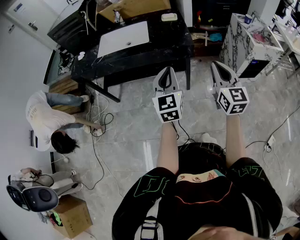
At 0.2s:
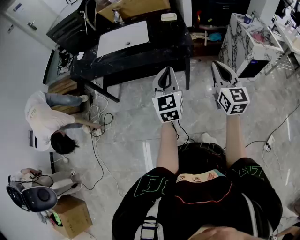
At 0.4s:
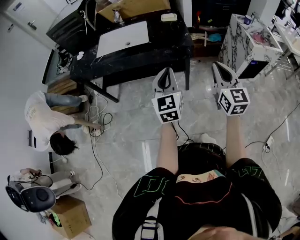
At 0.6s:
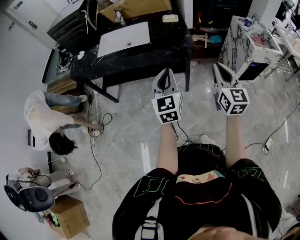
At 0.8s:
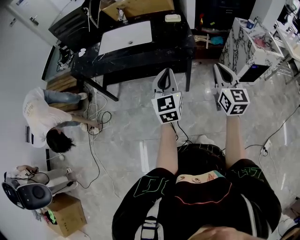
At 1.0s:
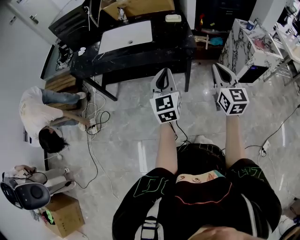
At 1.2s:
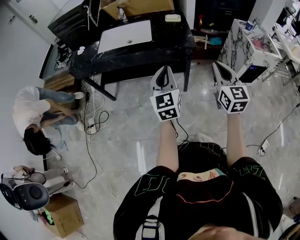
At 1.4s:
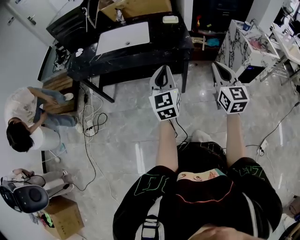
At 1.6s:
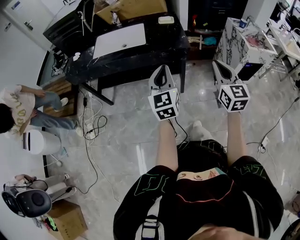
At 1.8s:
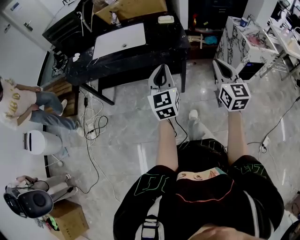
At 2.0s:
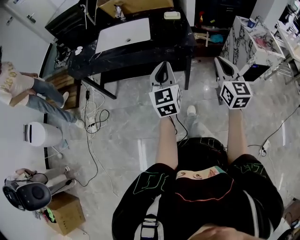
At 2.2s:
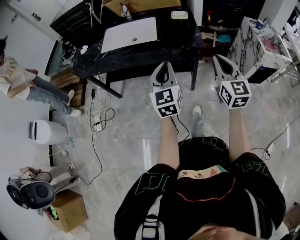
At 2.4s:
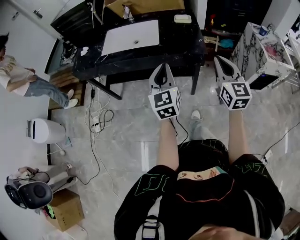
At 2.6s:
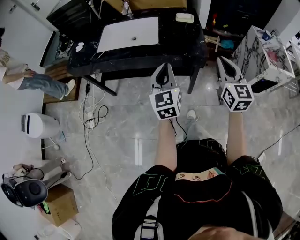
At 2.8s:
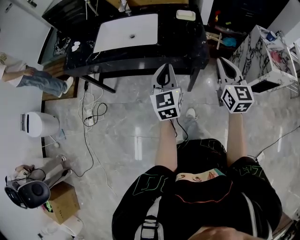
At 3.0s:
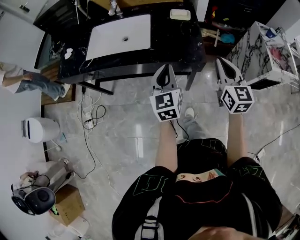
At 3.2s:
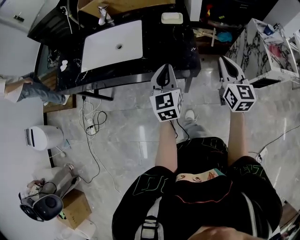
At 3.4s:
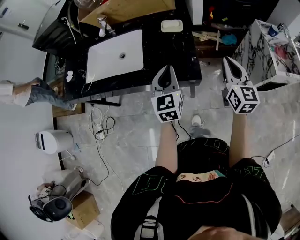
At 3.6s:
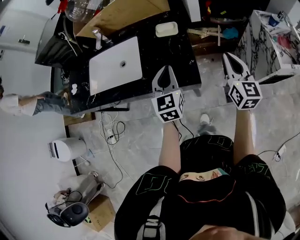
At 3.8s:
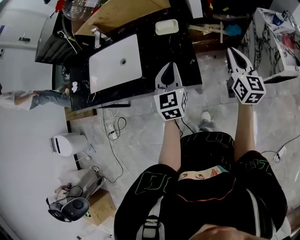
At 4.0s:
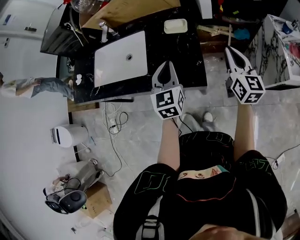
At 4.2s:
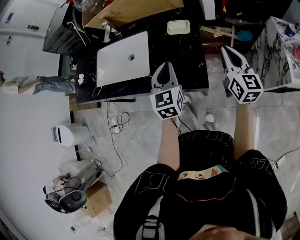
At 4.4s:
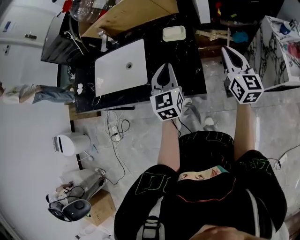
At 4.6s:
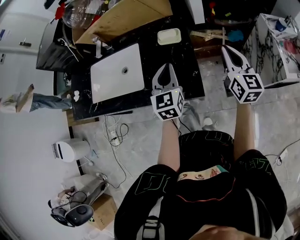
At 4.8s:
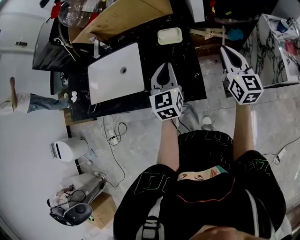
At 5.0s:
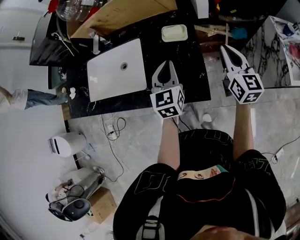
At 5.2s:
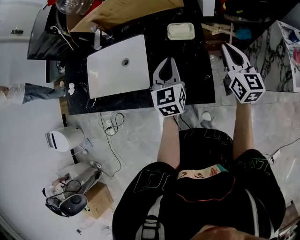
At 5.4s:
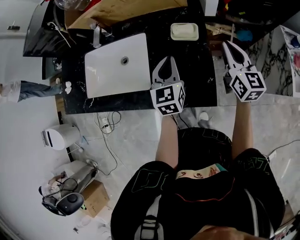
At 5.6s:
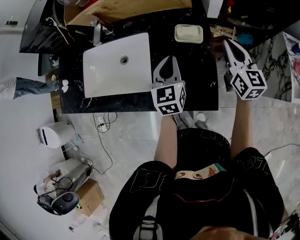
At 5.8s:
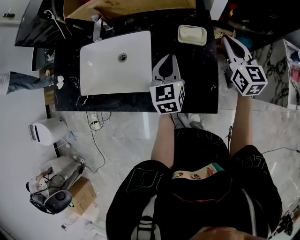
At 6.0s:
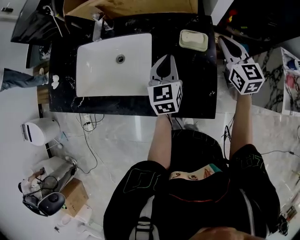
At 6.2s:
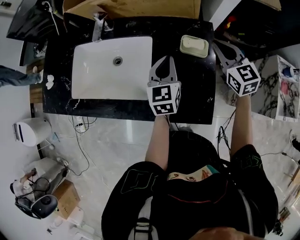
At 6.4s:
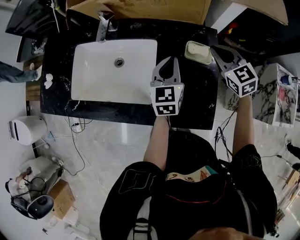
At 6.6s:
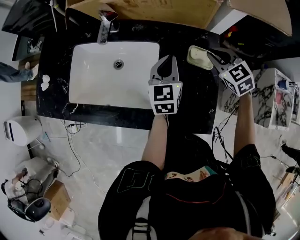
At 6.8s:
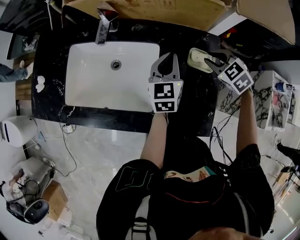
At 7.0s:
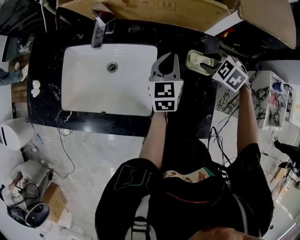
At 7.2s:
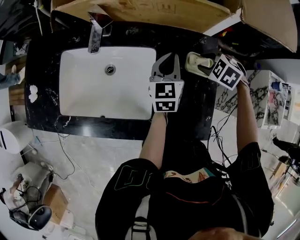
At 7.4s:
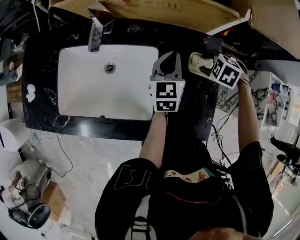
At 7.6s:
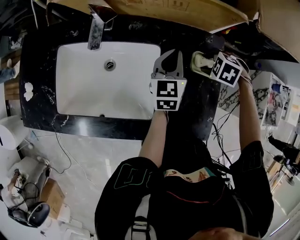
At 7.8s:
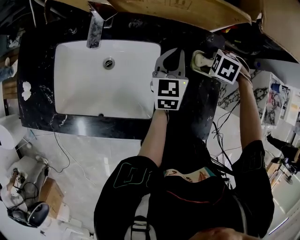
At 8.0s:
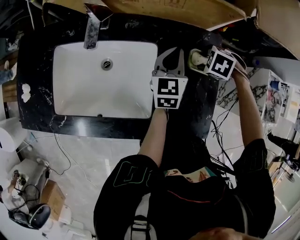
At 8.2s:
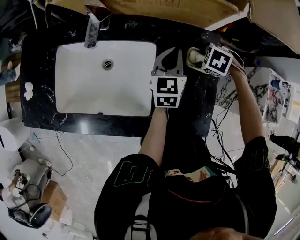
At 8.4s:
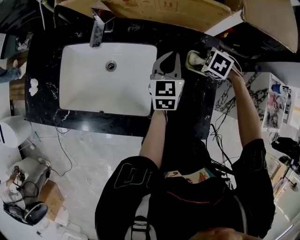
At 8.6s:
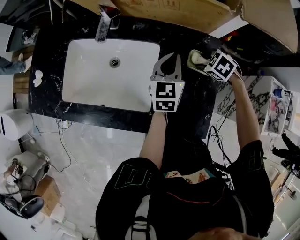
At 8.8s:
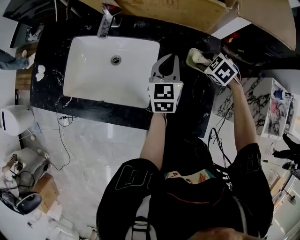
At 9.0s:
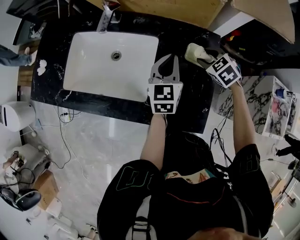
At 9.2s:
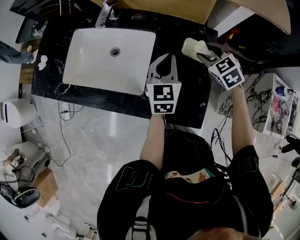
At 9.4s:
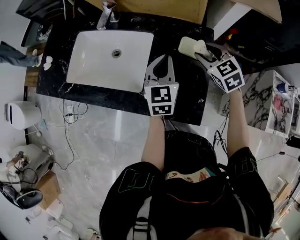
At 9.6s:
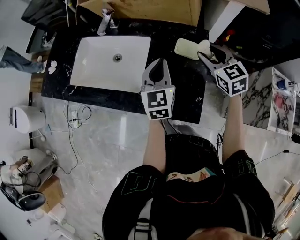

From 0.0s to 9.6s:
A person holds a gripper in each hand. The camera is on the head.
From 0.0s to 1.6s: The grippers make only small movements.
From 1.6s to 3.2s: Both grippers travel together forward, roughly 25 cm.
From 3.2s to 4.8s: Both grippers move forward, about 20 cm.
From 4.8s to 6.4s: The left gripper moves forward and to the left, some 15 cm, while the right gripper is displaced forward and to the left by roughly 25 cm, and rotates about 50 degrees.
From 6.4s to 8.0s: The left gripper moves approximately 10 cm; the right gripper travels downward by roughly 15 cm, angles its fingers downward, by about 60 degrees, and opens up.
From 8.0s to 9.6s: The right gripper shifts approximately 15 cm upward, and tips its fingers upward by roughly 60 degrees. The left gripper moves roughly 20 cm, and turns by roughly 20 degrees.

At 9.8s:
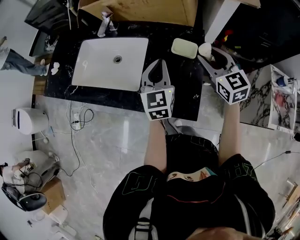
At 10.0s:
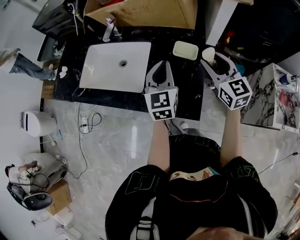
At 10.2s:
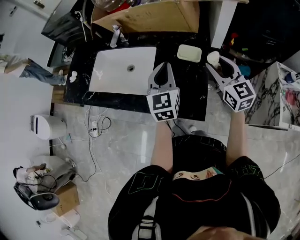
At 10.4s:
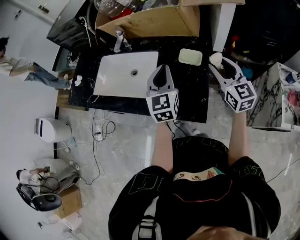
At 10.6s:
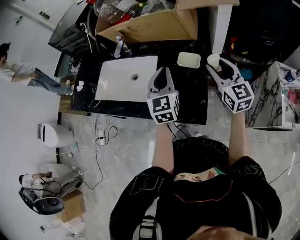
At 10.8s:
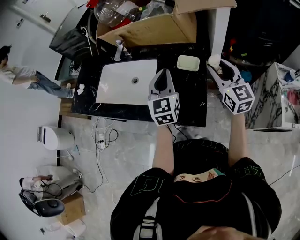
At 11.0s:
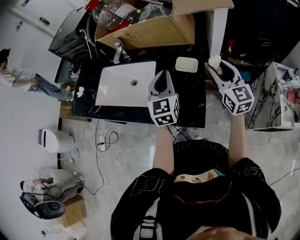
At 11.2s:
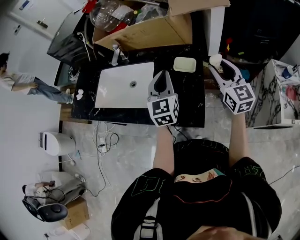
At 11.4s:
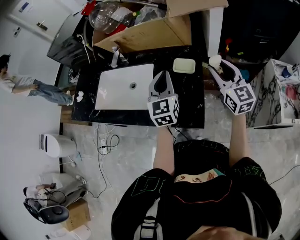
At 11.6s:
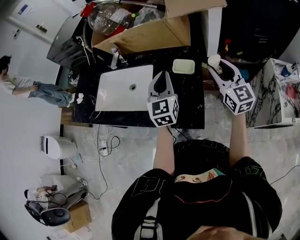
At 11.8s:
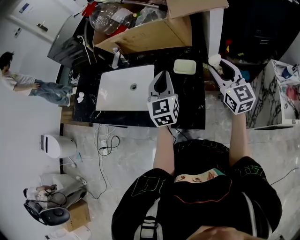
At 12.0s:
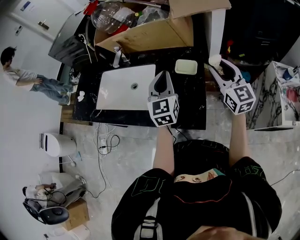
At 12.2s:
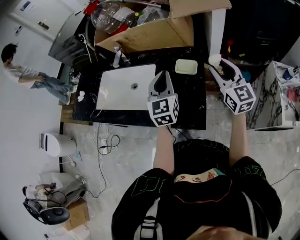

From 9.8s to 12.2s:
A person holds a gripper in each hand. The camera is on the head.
From 9.8s to 11.0s: The left gripper goes roughly 5 cm upward. The right gripper goes some 10 cm to the right and backward.
From 11.0s to 12.2s: The grippers move only a little.

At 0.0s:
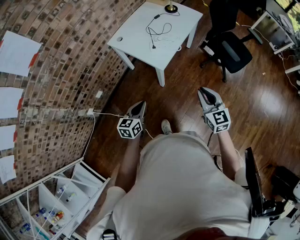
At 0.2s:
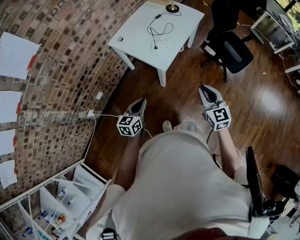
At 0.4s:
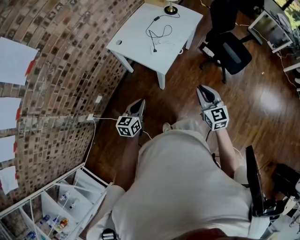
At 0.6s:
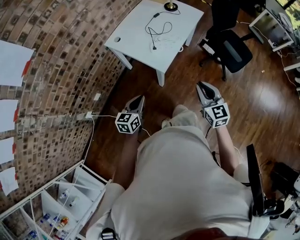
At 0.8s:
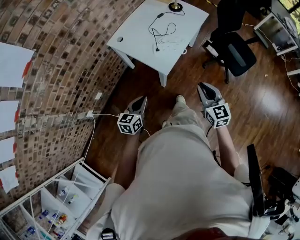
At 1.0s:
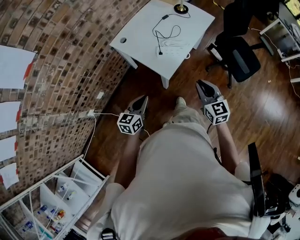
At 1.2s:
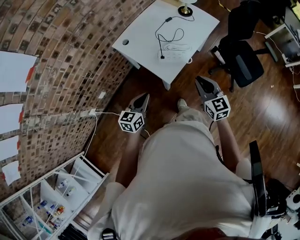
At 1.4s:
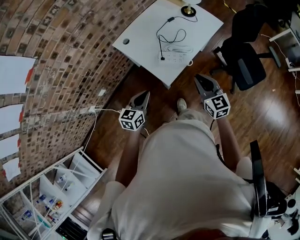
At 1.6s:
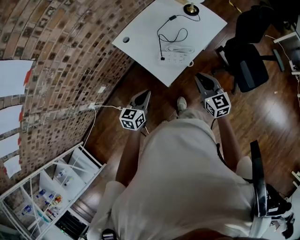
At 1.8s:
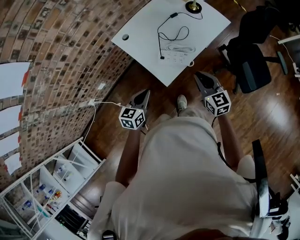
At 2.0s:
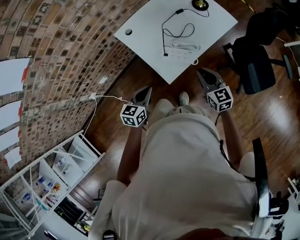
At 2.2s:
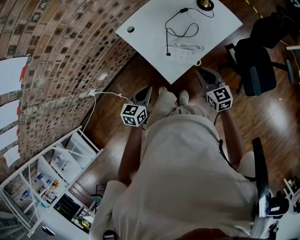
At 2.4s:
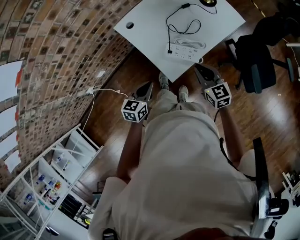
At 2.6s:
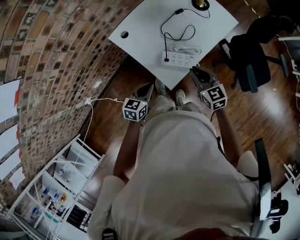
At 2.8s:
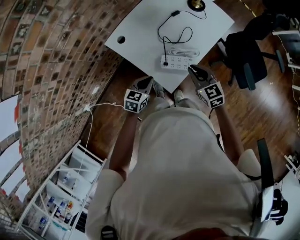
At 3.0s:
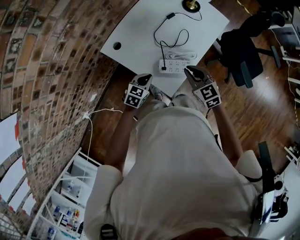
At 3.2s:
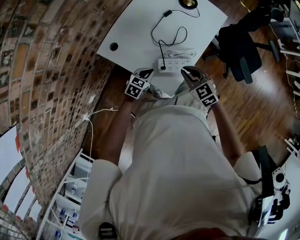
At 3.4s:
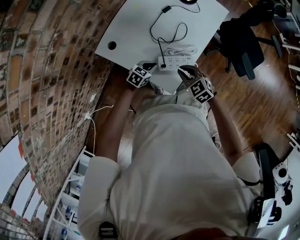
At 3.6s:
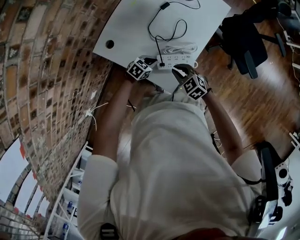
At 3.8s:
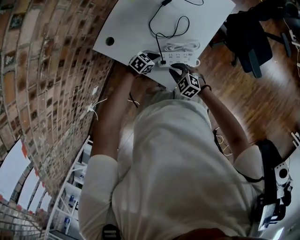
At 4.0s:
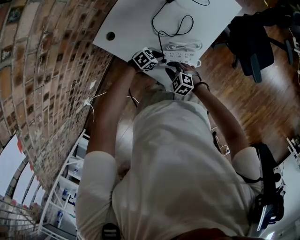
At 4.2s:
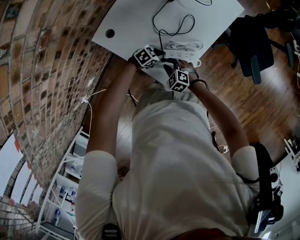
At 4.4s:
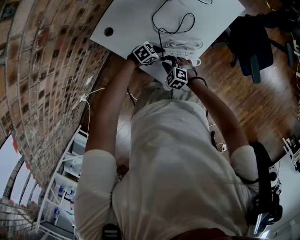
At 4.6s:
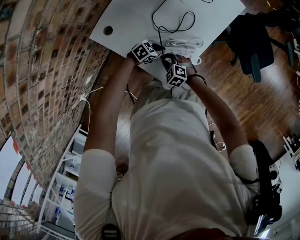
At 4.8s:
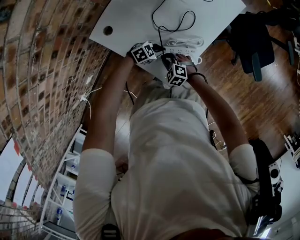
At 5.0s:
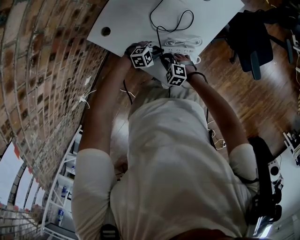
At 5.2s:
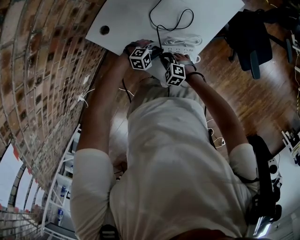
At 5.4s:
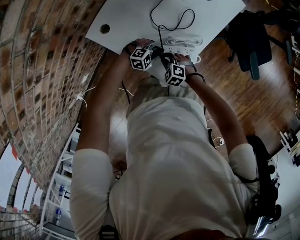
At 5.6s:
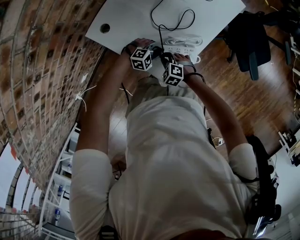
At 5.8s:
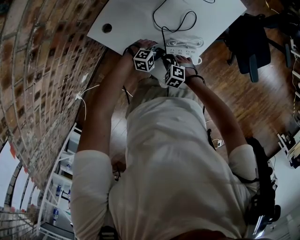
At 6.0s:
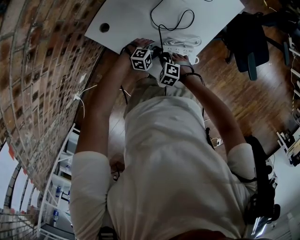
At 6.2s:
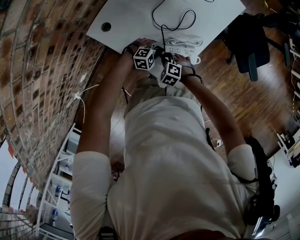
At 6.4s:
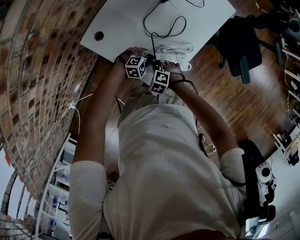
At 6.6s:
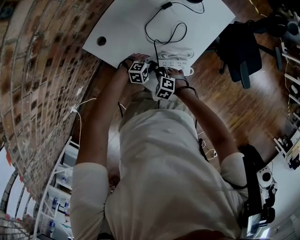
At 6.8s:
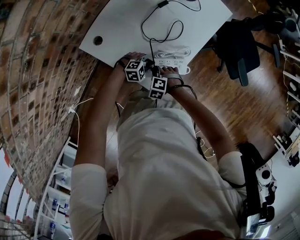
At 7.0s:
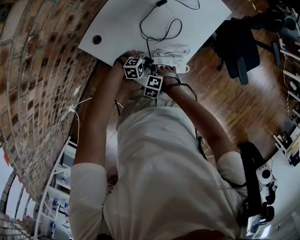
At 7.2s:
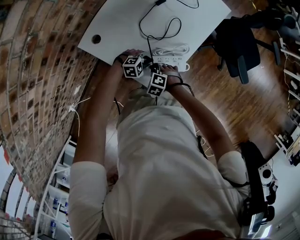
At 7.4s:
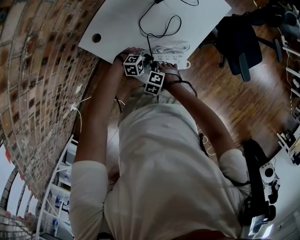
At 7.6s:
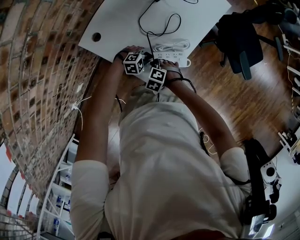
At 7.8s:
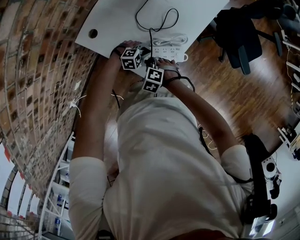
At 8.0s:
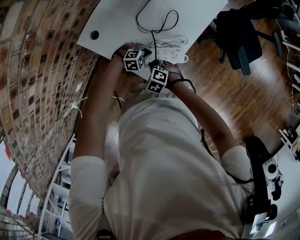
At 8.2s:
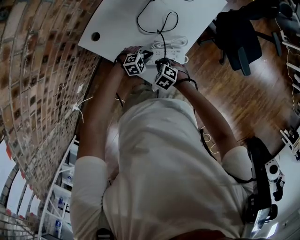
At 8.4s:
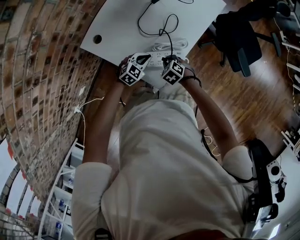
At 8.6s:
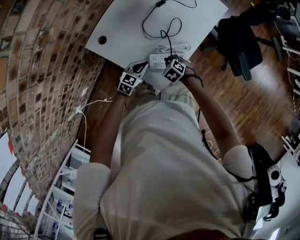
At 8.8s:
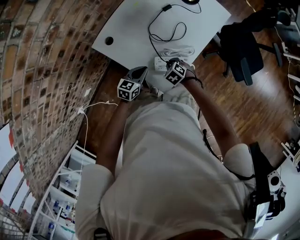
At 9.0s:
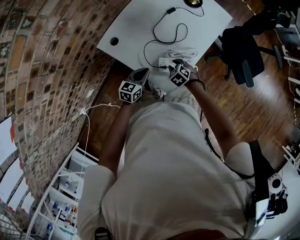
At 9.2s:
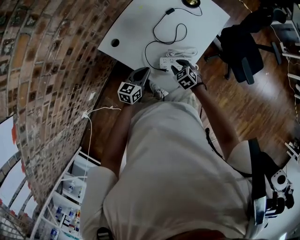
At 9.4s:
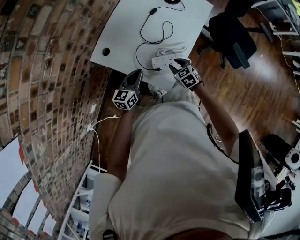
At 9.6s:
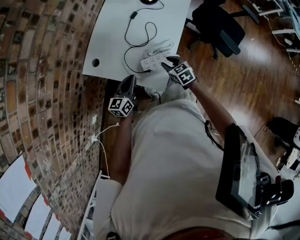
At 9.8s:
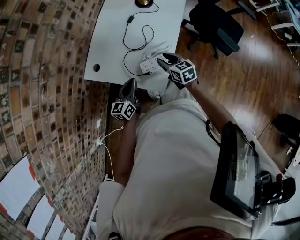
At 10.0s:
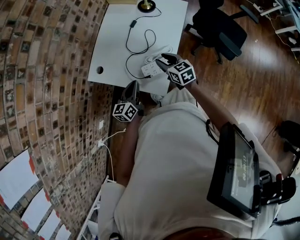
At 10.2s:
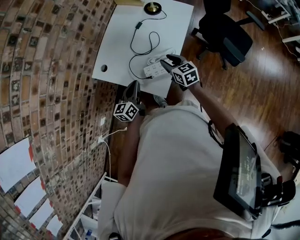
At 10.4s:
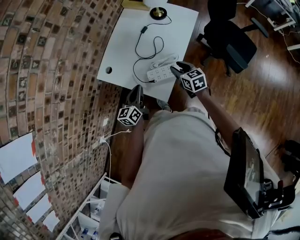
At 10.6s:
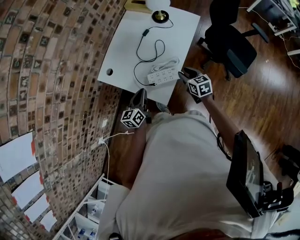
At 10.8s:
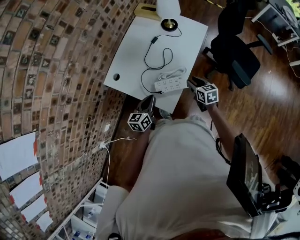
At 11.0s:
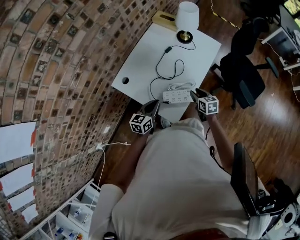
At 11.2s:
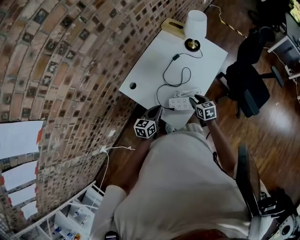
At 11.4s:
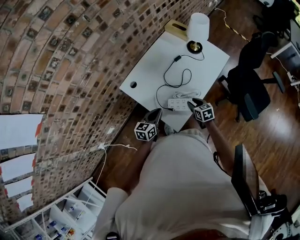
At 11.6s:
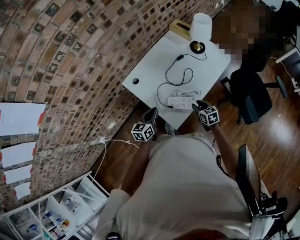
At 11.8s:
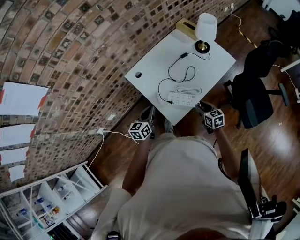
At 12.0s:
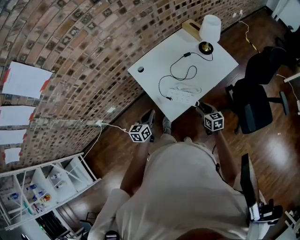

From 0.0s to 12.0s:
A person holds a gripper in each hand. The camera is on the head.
From 0.0s to 1.6s: Both grippers travel together forward, roughly 25 cm.
From 1.6s to 3.0s: The left gripper shifts about 25 cm forward and downward, and rotates roughly 30 degrees; the right gripper is displaced forward, to the left and downward by approximately 20 cm.
From 3.0s to 4.4s: The right gripper goes approximately 25 cm downward, and changes its angle by approximately 40 degrees; the left gripper travels downward by approximately 15 cm, and turns by approximately 40 degrees.
From 4.4s to 6.0s: The left gripper rotates around the line of its fingers by roughly 40 degrees, clockwise from behind.
From 6.0s to 7.6s: There are only small adjustments of the grippers.
From 7.6s to 9.0s: The right gripper moves some 5 cm, and swivels approximately 20 degrees. Meanwhile the left gripper shifts roughly 15 cm upward, and swivels approximately 70 degrees.
From 9.0s to 10.4s: The right gripper heads upward and to the right, covering roughly 20 cm, and angles its fingers upward, by roughly 30 degrees; the left gripper shifts roughly 10 cm upward, and swivels some 20 degrees.
From 10.4s to 12.0s: The left gripper changes place by roughly 10 cm, and swivels some 20 degrees, while the right gripper shifts by some 5 cm.
